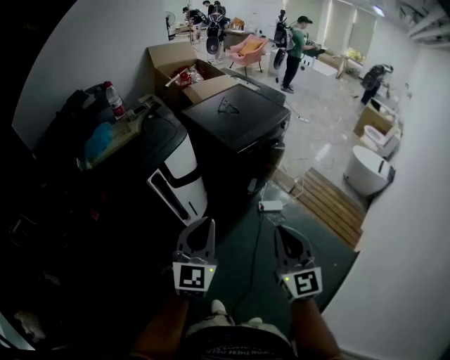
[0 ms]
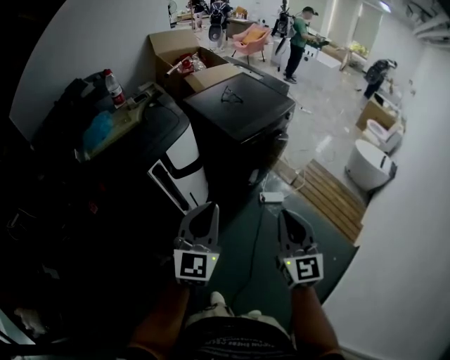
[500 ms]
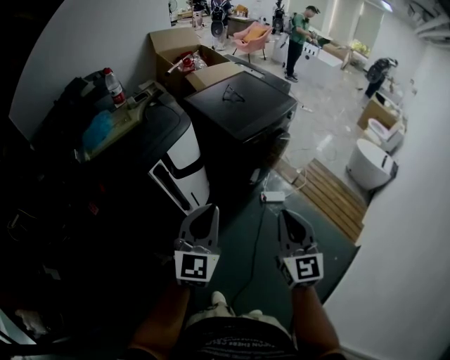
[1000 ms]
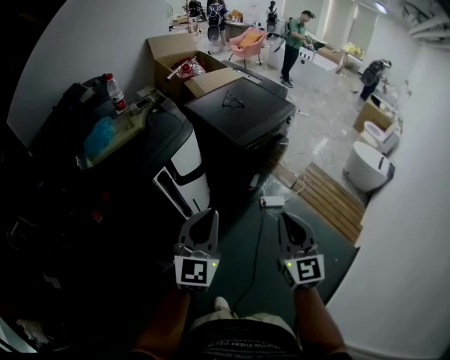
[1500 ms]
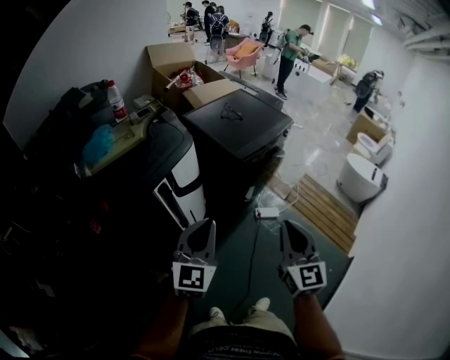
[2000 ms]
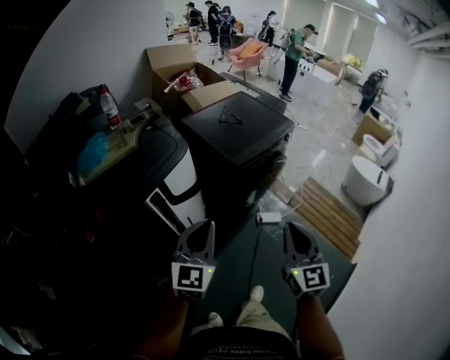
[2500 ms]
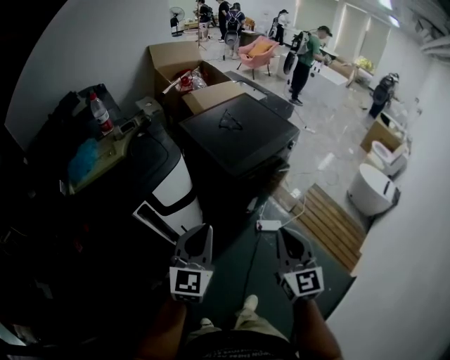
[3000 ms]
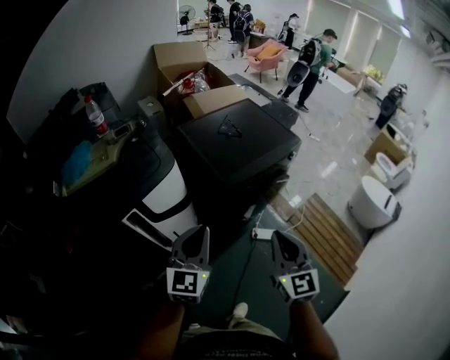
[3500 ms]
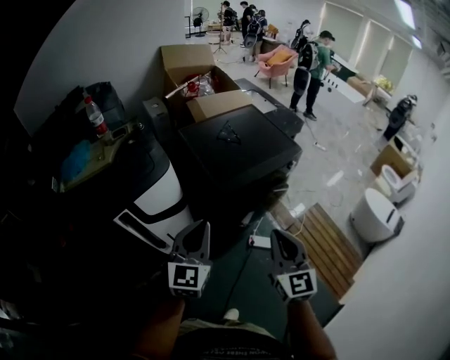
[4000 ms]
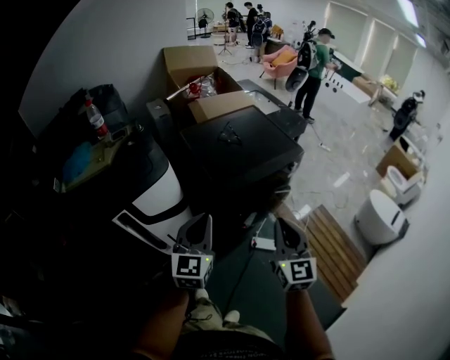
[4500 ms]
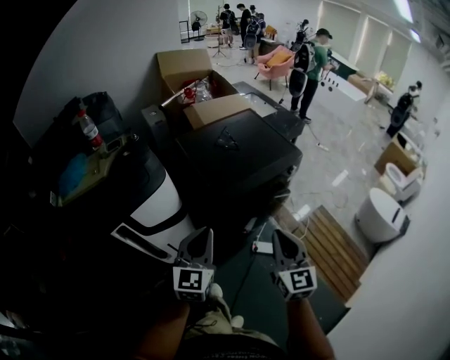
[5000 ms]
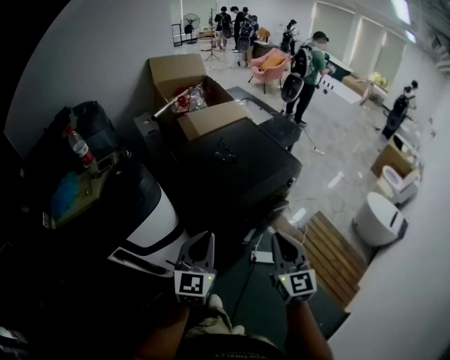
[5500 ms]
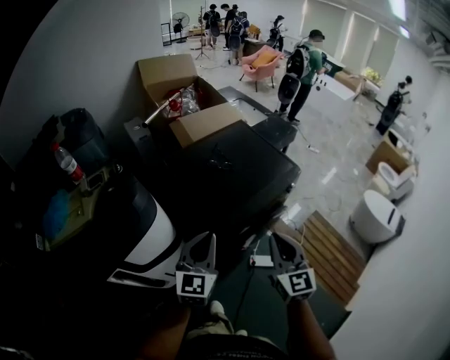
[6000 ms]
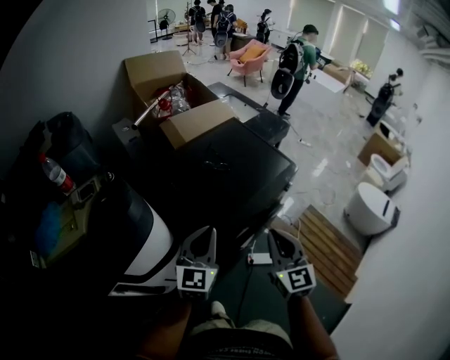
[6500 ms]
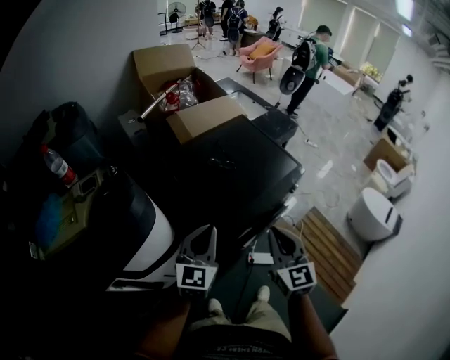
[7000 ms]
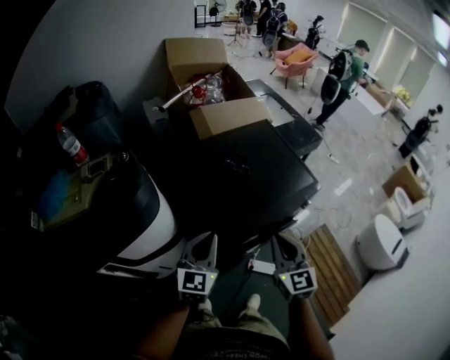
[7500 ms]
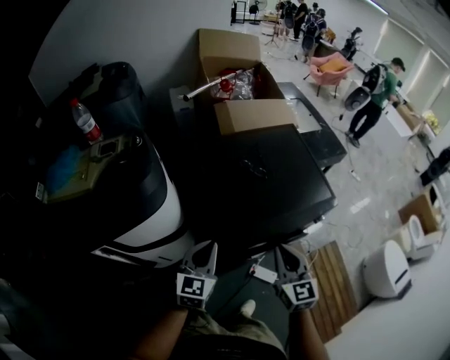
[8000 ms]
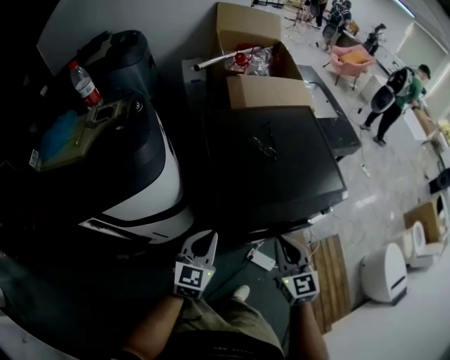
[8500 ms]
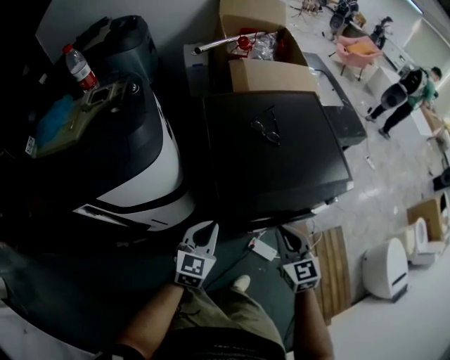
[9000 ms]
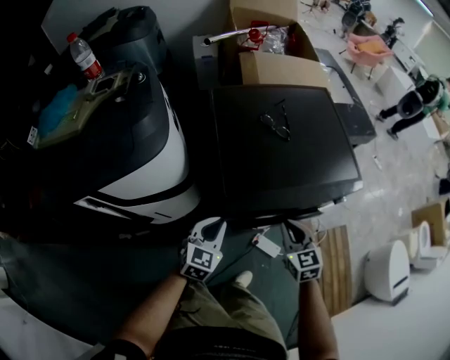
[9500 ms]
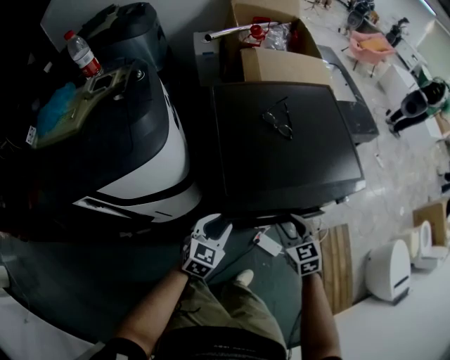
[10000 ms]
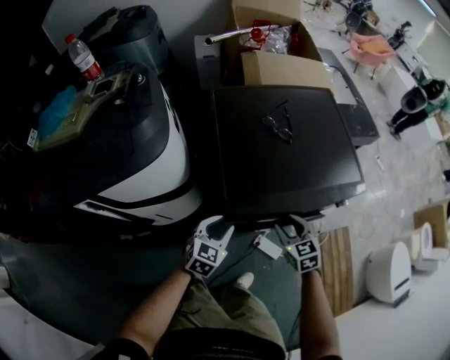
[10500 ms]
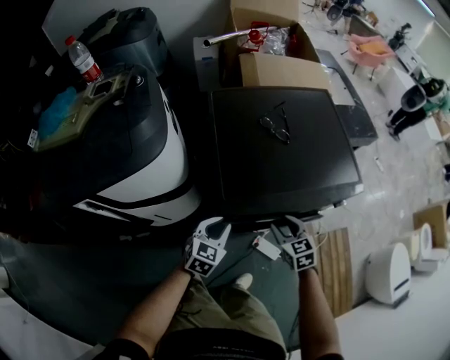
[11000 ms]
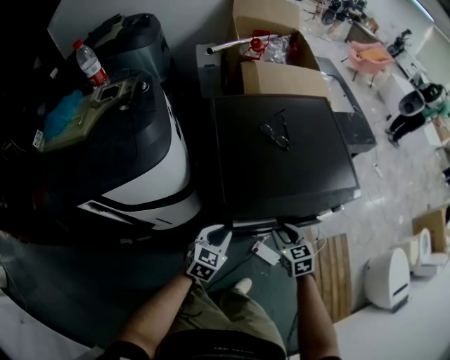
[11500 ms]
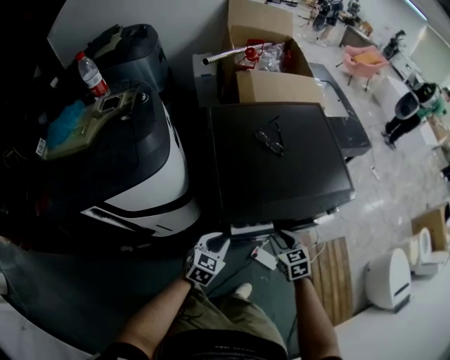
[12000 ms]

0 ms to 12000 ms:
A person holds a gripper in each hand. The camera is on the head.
0 ms to 2000 ms: The right gripper is displaced forward by about 5 cm. The left gripper heads to the left and forward, covering about 10 cm.
2000 ms to 4000 ms: The two grippers go roughly 25 cm forward and to the right.
4000 ms to 6000 ms: Both grippers travel together forward, about 20 cm.
6000 ms to 8000 ms: The left gripper goes about 10 cm downward and forward, and turns by approximately 20 degrees. The right gripper shifts about 15 cm forward and downward, and rotates some 20 degrees.
8000 ms to 10000 ms: The grippers both shift downward by some 20 cm. The right gripper rotates some 30 degrees, and opens up; the left gripper opens.
10000 ms to 12000 ms: The grippers stay close to where they were, moving slightly.

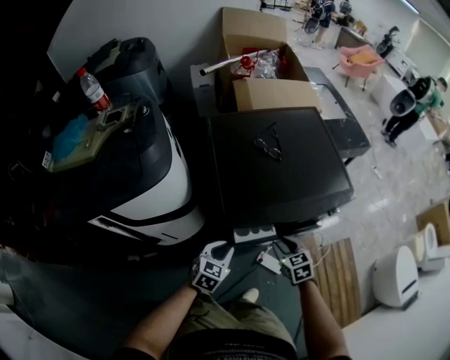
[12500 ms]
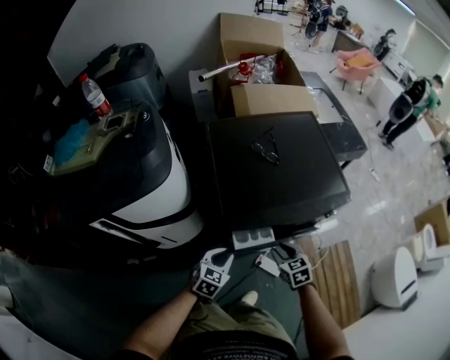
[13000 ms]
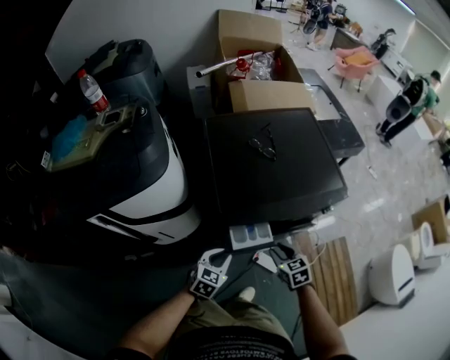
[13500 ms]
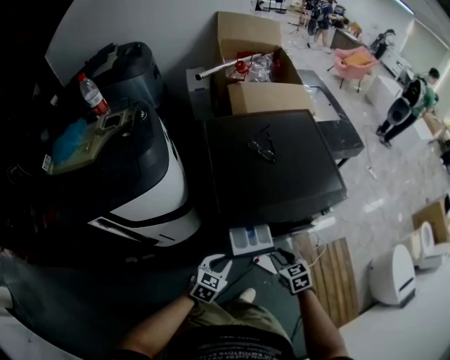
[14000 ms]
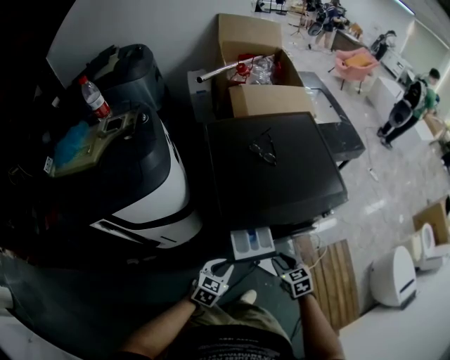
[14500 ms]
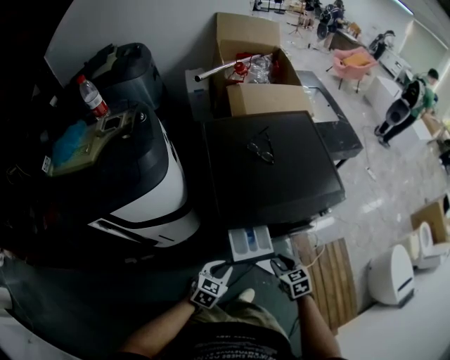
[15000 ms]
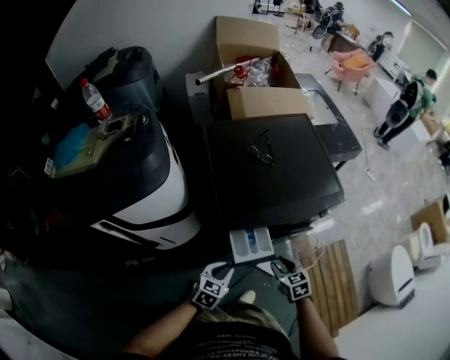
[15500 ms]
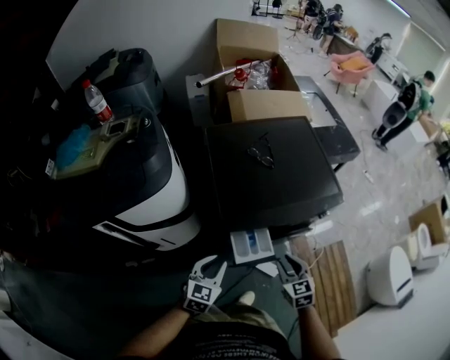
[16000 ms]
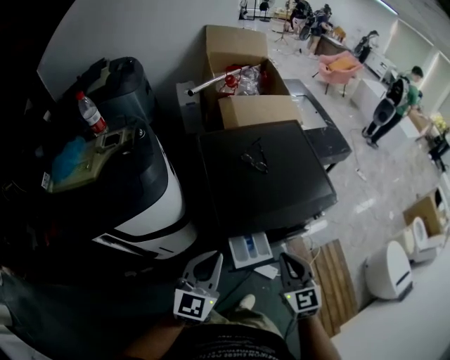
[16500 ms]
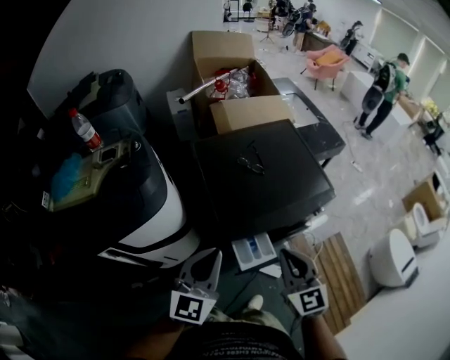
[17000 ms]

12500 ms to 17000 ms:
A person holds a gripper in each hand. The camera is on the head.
12500 ms to 14500 ms: Both grippers move backward, roughly 5 cm.
14500 ms to 17000 ms: The two grippers go about 30 cm upward. The right gripper points its fingers about 30 degrees further upward, and closes up; the left gripper angles its fingers upward, by approximately 40 degrees.

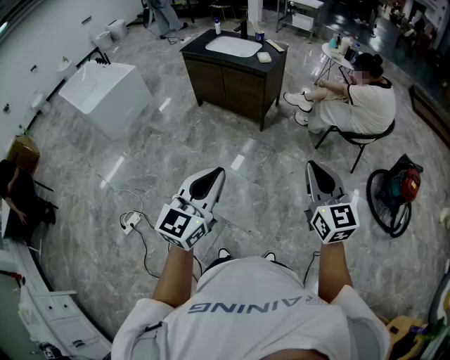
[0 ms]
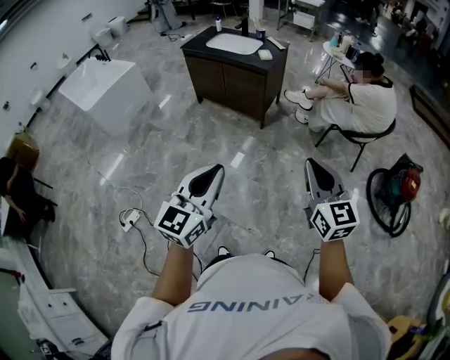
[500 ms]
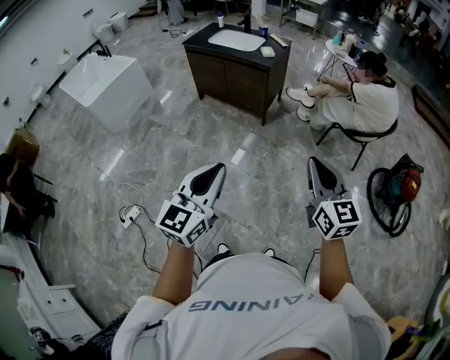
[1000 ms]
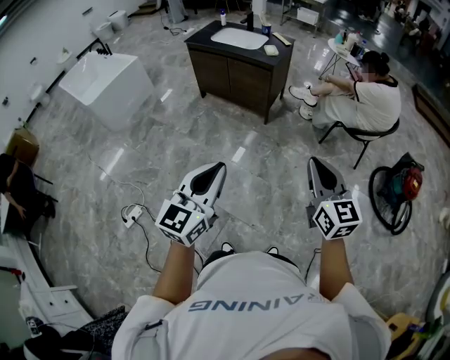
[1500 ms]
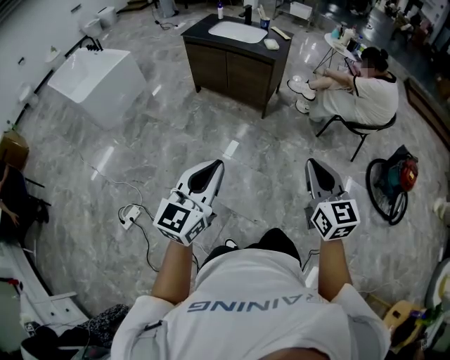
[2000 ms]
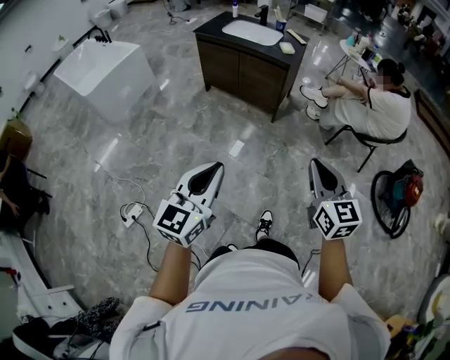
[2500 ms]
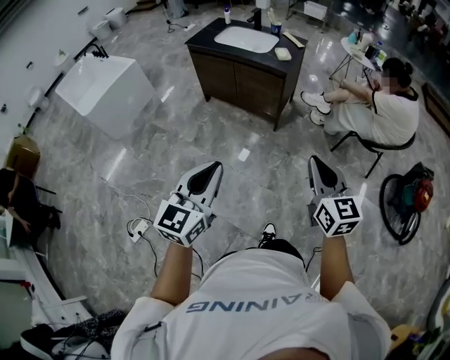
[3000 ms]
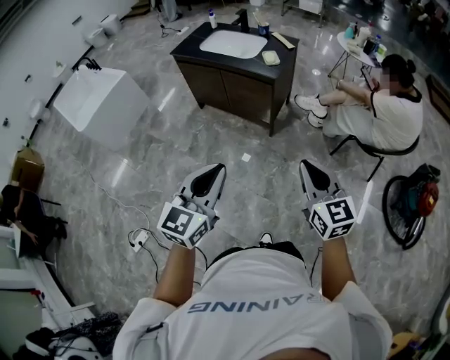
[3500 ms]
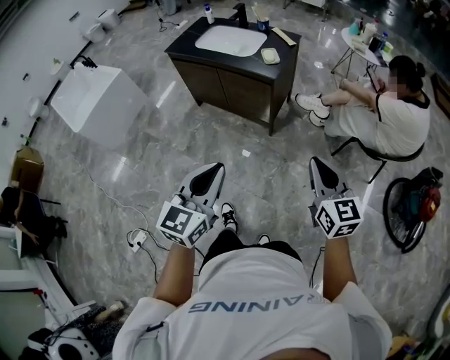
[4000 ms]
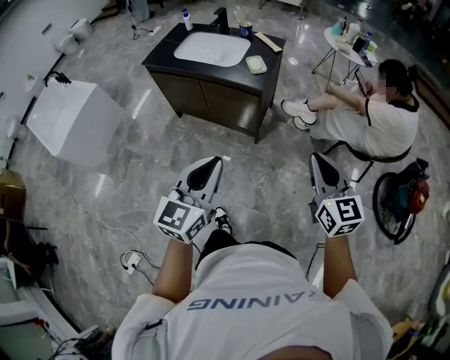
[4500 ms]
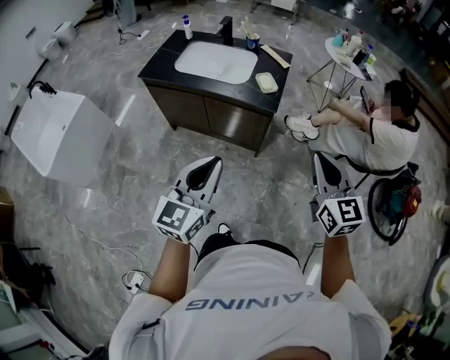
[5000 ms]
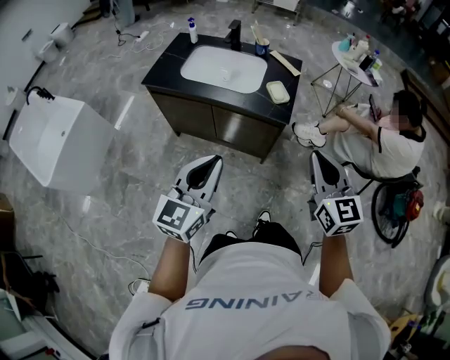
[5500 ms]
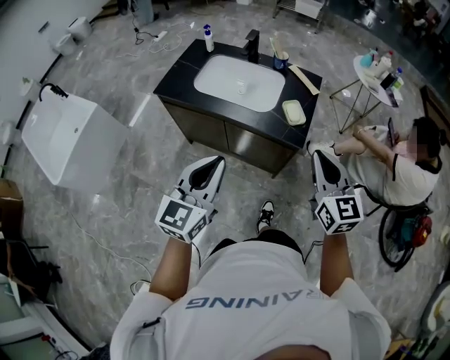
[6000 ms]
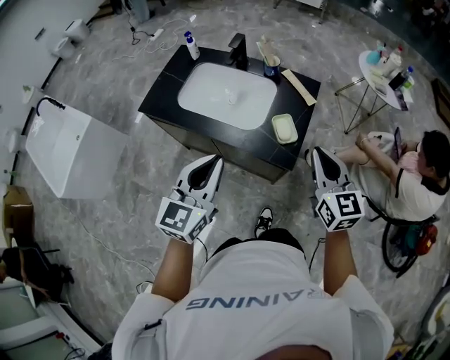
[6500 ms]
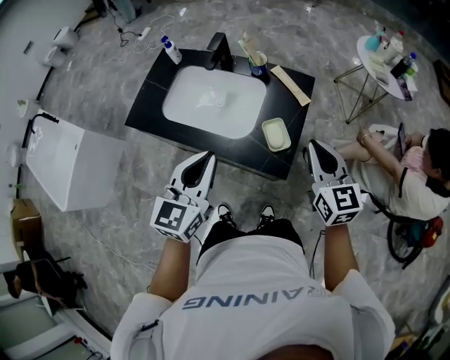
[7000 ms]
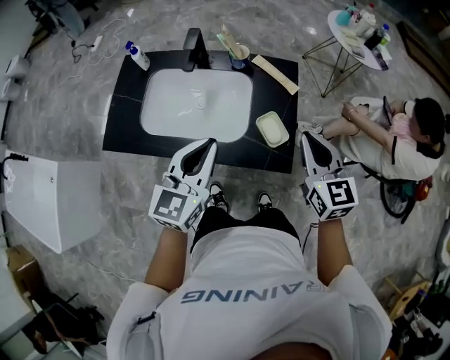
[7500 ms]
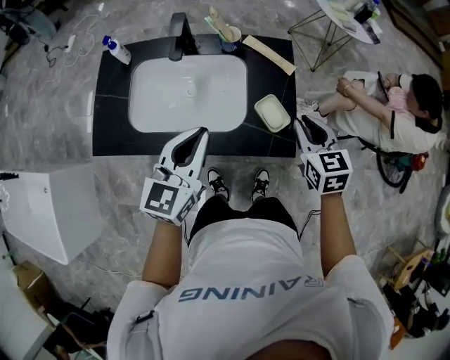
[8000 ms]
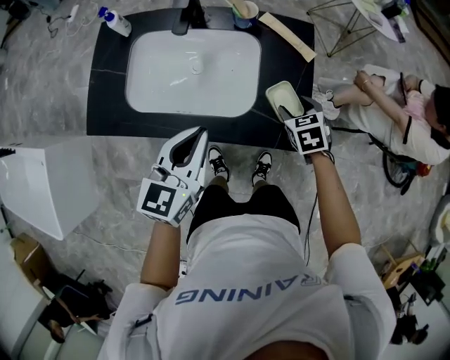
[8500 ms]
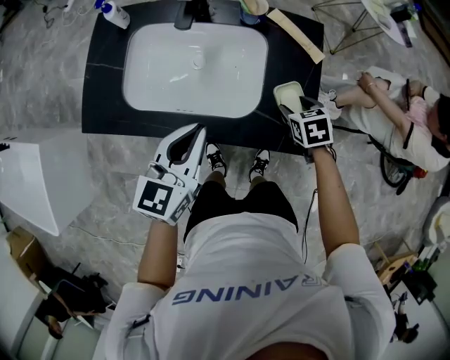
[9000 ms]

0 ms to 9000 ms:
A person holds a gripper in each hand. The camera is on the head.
0 ms to 2000 ms: Both grippers move to the left, roughly 10 cm.
2000 ms to 4500 ms: The two grippers travel together, forward, some 40 cm.
4500 ms to 7000 ms: The pair of grippers is taken forward, roughly 50 cm.
7000 ms to 9000 ms: The left gripper is displaced downward, to the left and forward by approximately 20 cm, and changes its angle by some 20 degrees. Meanwhile the right gripper goes about 25 cm downward, tilts its fingers roughly 50 degrees downward, and opens.

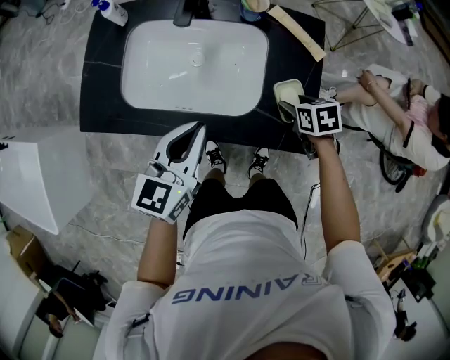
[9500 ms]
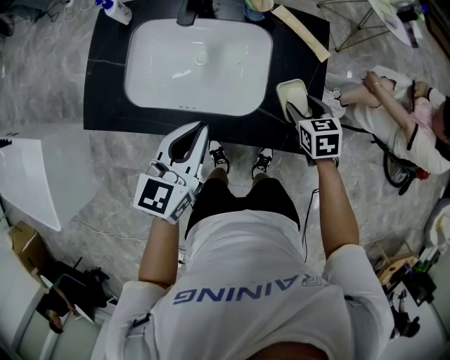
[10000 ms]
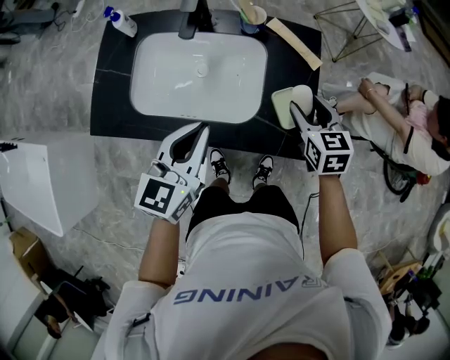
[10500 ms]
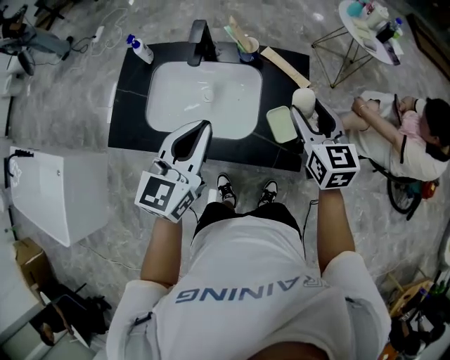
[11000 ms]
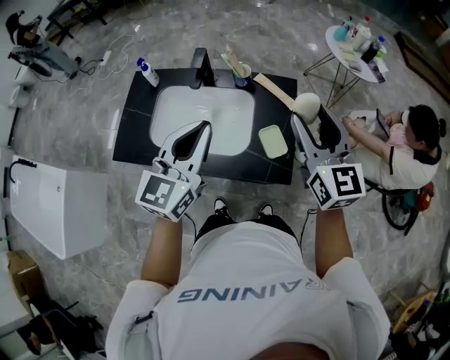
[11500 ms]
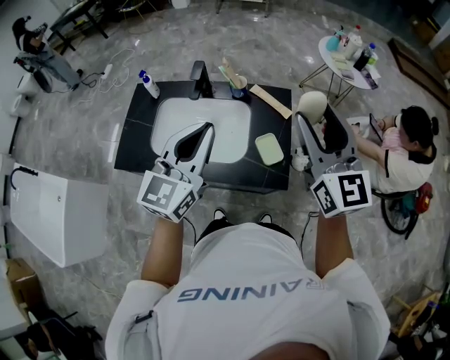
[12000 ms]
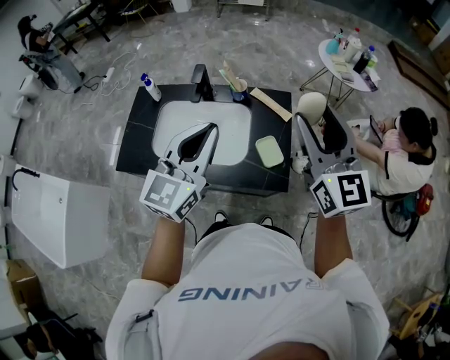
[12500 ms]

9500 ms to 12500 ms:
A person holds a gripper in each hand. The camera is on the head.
9500 ms to 11000 ms: The left gripper shifts approximately 10 cm upward, while the right gripper is displaced upward by some 25 cm, and tips its fingers upward by roughly 40 degrees.
11000 ms to 12500 ms: The right gripper travels upward by approximately 20 cm, and turns by some 30 degrees; the left gripper goes about 10 cm upward.
